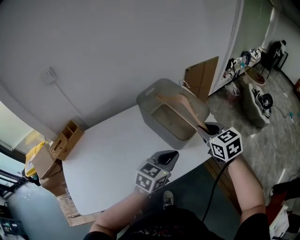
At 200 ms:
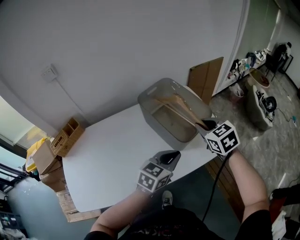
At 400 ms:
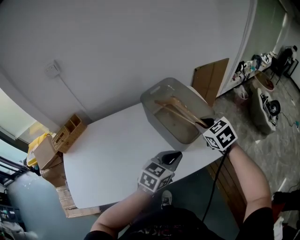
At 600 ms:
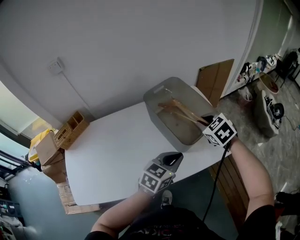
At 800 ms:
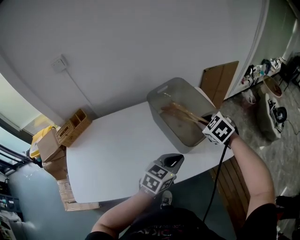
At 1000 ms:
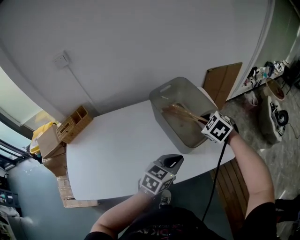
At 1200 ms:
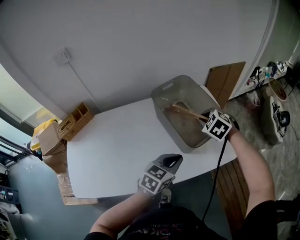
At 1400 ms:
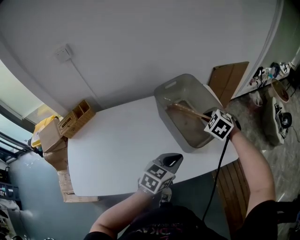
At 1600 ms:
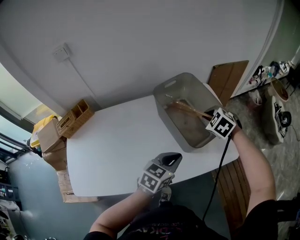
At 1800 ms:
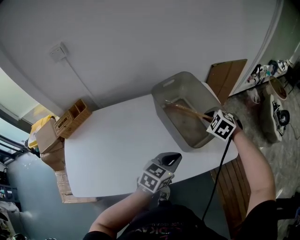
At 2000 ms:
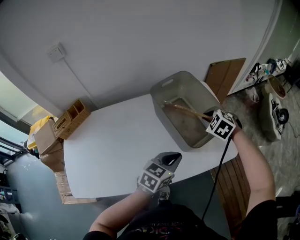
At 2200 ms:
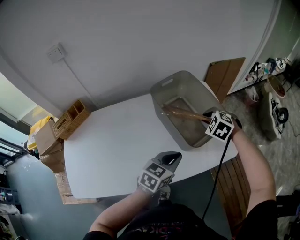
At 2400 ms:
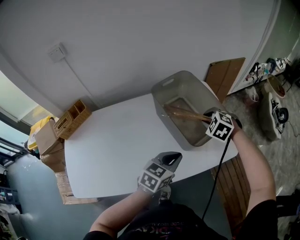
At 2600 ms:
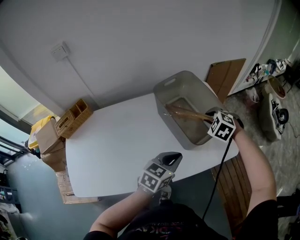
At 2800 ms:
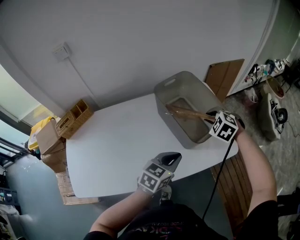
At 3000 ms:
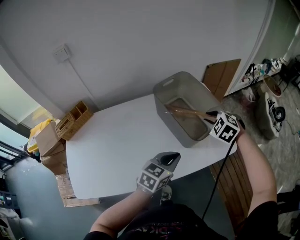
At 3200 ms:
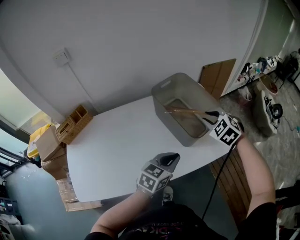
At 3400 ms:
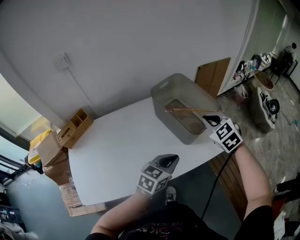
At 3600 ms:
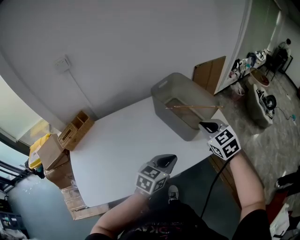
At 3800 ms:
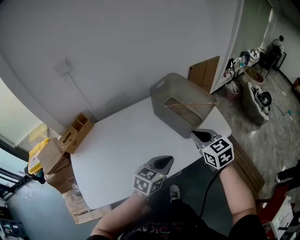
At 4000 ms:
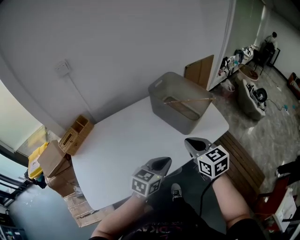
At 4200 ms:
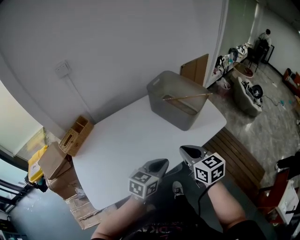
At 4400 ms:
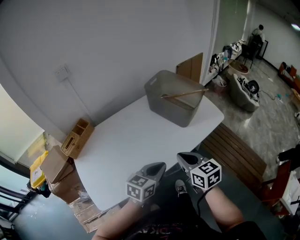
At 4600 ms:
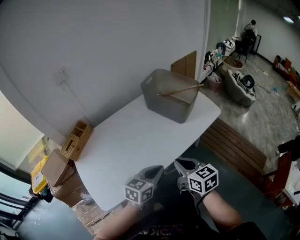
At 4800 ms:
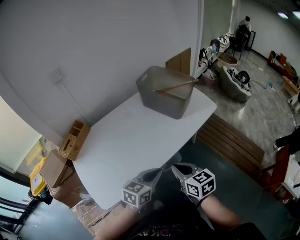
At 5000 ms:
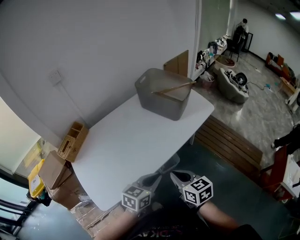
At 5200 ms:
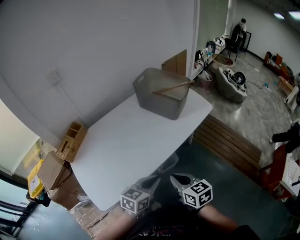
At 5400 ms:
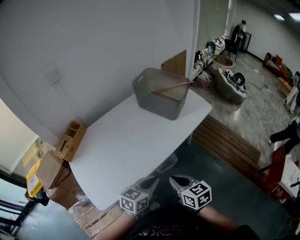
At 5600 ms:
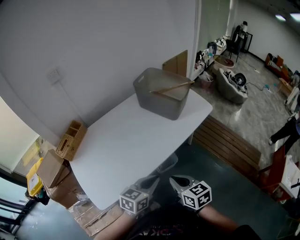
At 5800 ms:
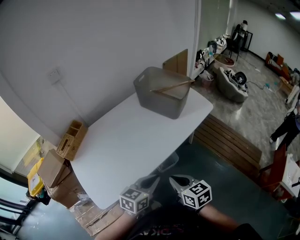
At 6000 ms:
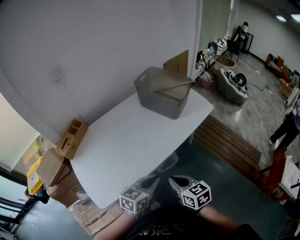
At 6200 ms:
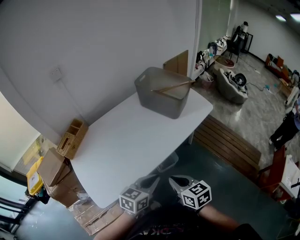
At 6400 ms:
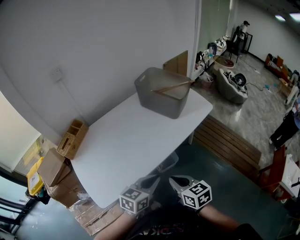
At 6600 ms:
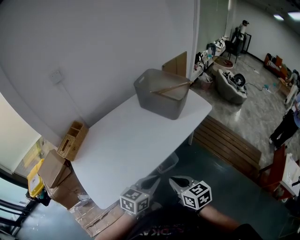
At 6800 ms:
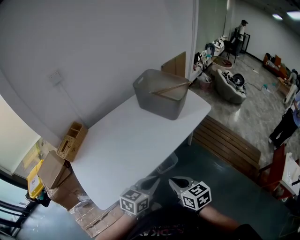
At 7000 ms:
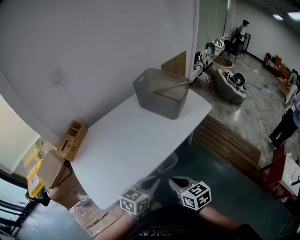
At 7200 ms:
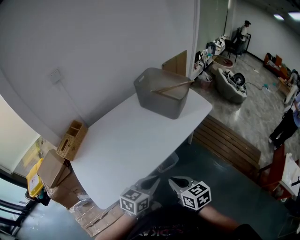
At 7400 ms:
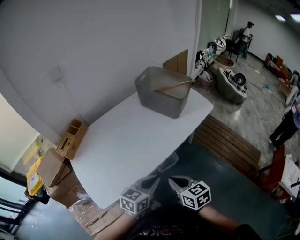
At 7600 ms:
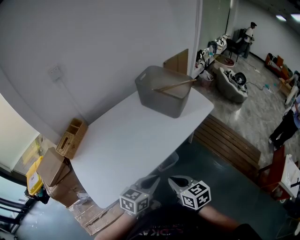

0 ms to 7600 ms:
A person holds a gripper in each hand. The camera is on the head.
0 ms to 1600 ms: The left gripper is displaced downward by about 5 cm, while the right gripper is displaced forward and downward by roughly 15 cm, and rotates roughly 40 degrees.
1600 ms to 3000 ms: The right gripper moves some 5 cm.
3000 ms to 4600 ms: The left gripper goes about 30 cm backward and to the left. The right gripper is displaced backward by about 40 cm, rotates around the line of its fingers by approximately 60 degrees, clockwise from behind, and closes its fingers.
4600 ms to 6000 ms: Both grippers move backward, some 10 cm.
6000 ms to 7600 ms: Both grippers stay put.

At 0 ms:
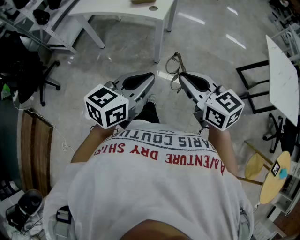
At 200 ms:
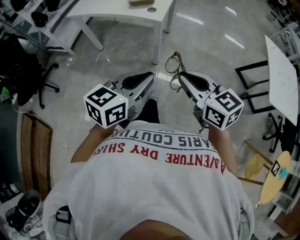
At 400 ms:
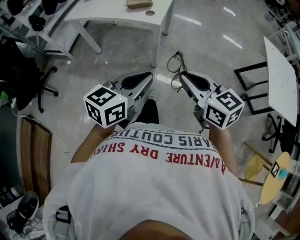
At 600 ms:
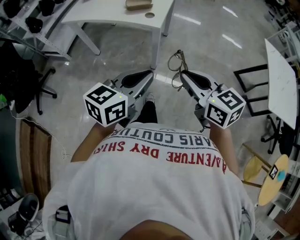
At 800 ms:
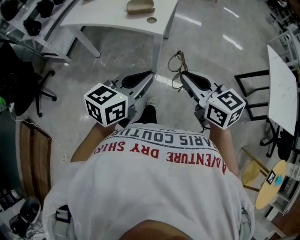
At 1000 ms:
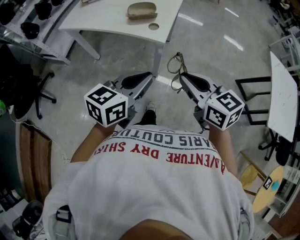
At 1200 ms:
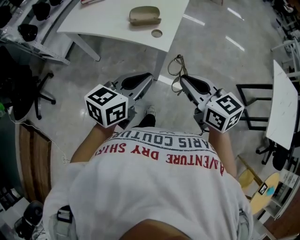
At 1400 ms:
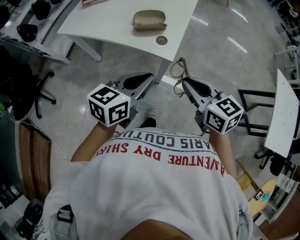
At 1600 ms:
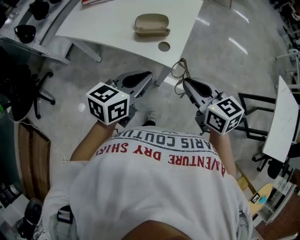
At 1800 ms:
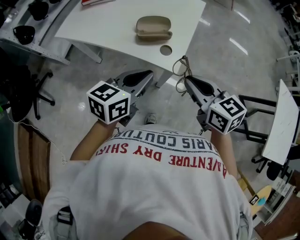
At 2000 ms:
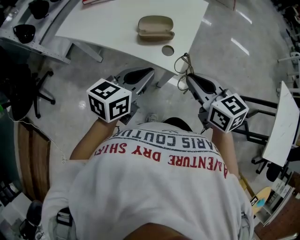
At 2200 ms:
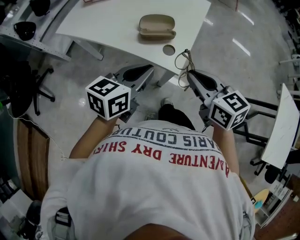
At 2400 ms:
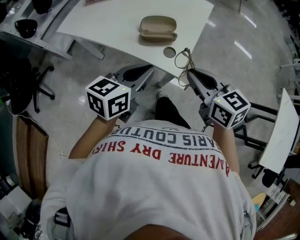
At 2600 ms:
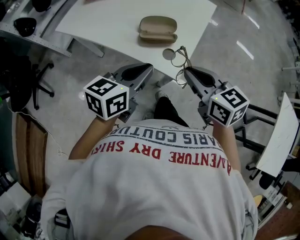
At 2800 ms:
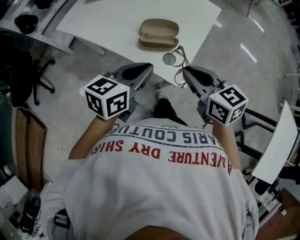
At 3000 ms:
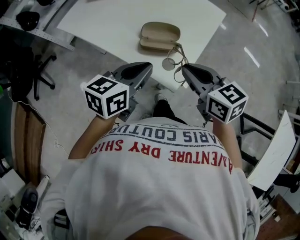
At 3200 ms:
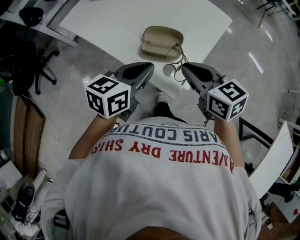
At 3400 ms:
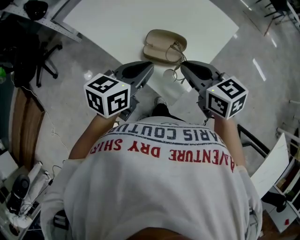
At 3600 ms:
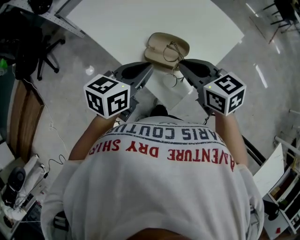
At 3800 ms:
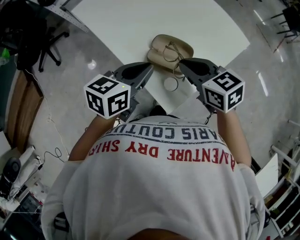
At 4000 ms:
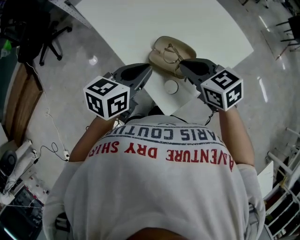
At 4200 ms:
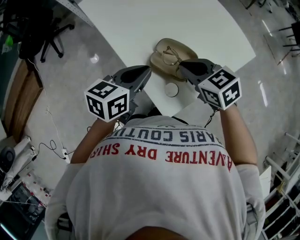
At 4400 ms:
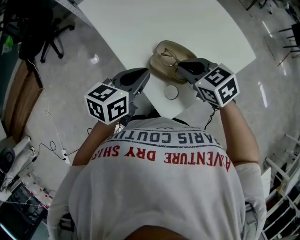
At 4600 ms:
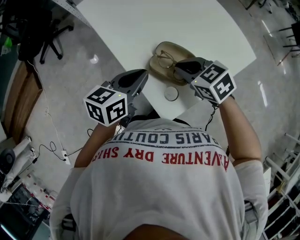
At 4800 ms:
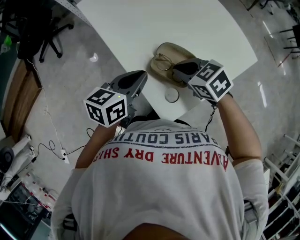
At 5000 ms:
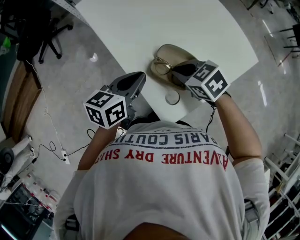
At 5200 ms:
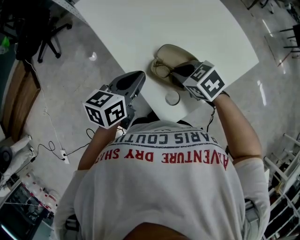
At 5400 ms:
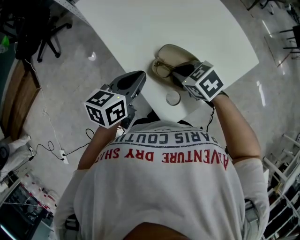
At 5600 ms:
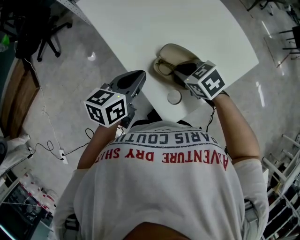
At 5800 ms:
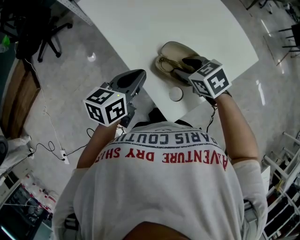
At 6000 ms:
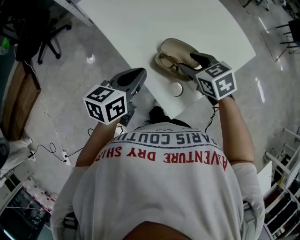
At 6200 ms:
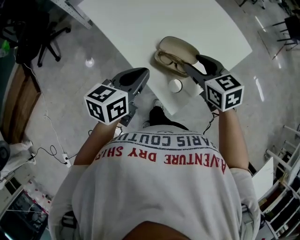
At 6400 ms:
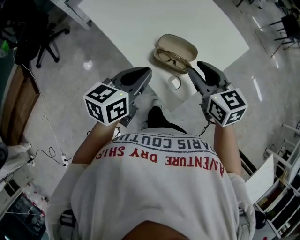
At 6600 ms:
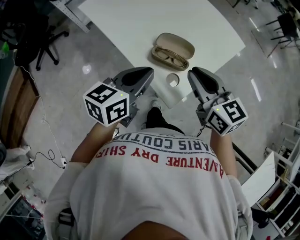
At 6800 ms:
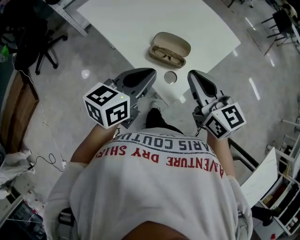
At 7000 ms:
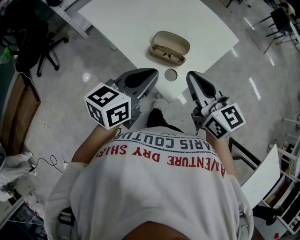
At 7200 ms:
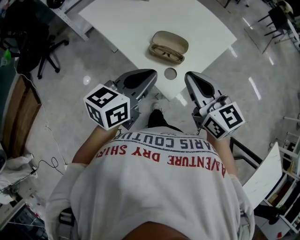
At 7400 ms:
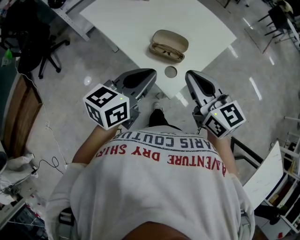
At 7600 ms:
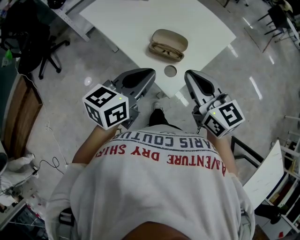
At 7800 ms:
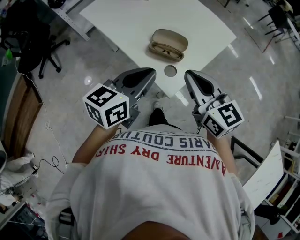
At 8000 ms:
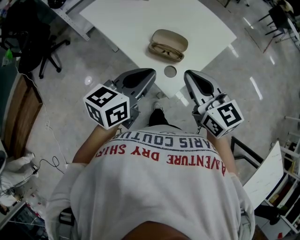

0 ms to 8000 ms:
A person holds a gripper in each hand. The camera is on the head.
0 ms to 1600 ms: Both grippers move forward, about 35 cm.
1600 ms to 3200 ms: The two grippers go roughly 20 cm forward.
3200 ms to 4800 ms: The left gripper ends up roughly 10 cm from where it was, and turns by about 20 degrees. Meanwhile the right gripper moves some 15 cm, and rotates some 40 degrees.
4800 ms to 6400 ms: The right gripper shifts approximately 10 cm upward and backward, changes its angle by about 40 degrees, and opens its fingers, while the left gripper shifts roughly 5 cm upward.
6400 ms to 8000 ms: Both grippers travel together backward and upward, roughly 10 cm. The right gripper closes.

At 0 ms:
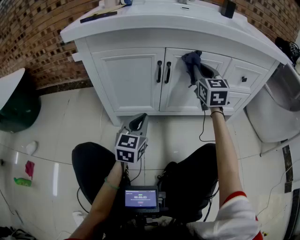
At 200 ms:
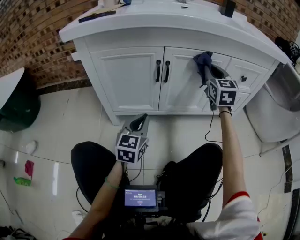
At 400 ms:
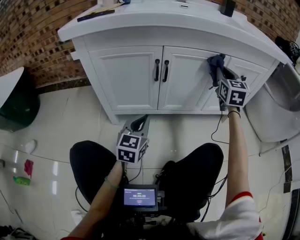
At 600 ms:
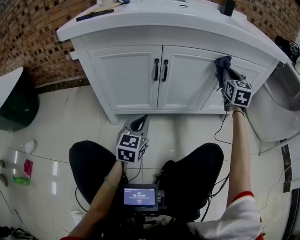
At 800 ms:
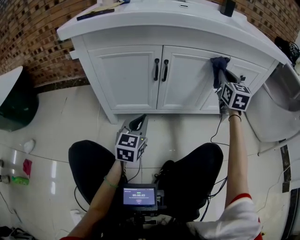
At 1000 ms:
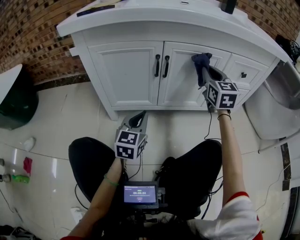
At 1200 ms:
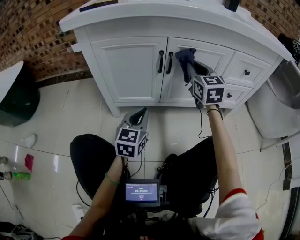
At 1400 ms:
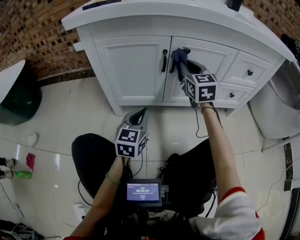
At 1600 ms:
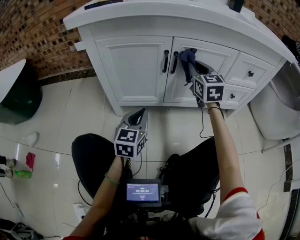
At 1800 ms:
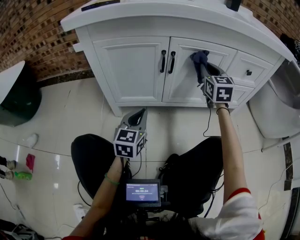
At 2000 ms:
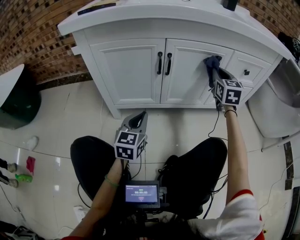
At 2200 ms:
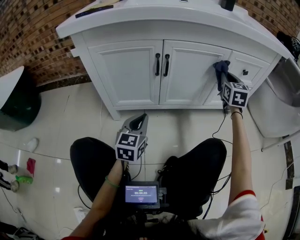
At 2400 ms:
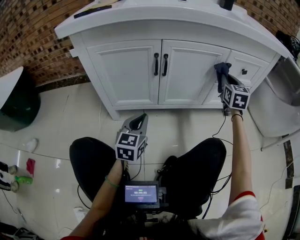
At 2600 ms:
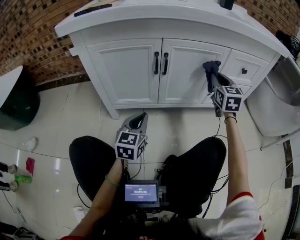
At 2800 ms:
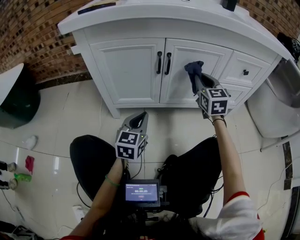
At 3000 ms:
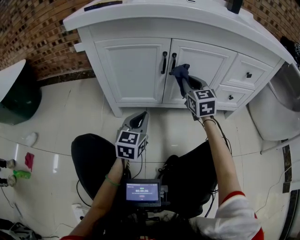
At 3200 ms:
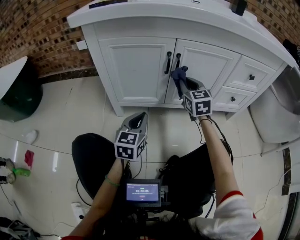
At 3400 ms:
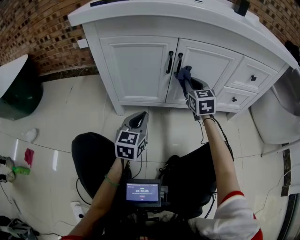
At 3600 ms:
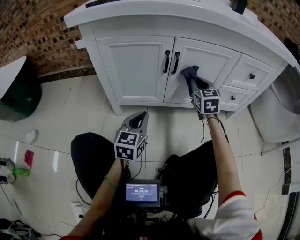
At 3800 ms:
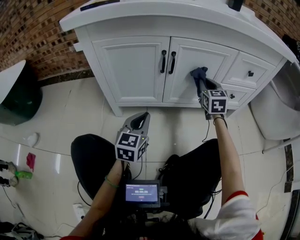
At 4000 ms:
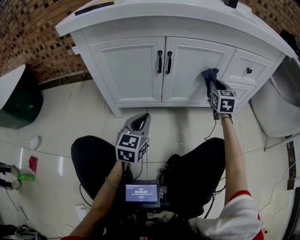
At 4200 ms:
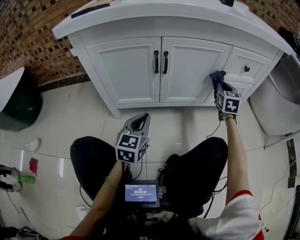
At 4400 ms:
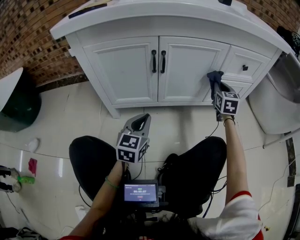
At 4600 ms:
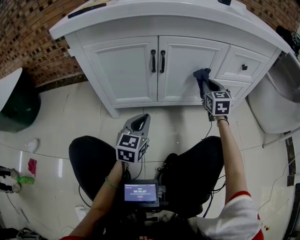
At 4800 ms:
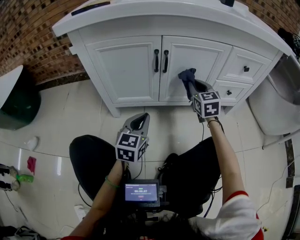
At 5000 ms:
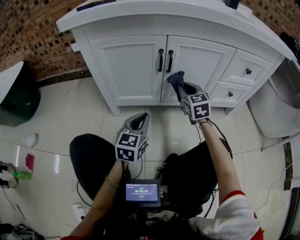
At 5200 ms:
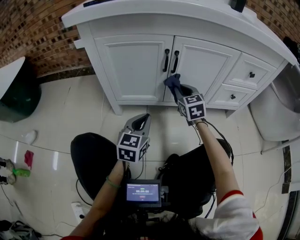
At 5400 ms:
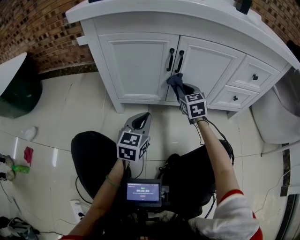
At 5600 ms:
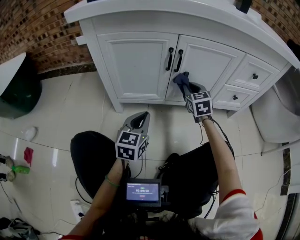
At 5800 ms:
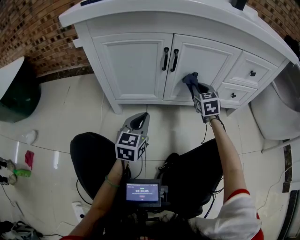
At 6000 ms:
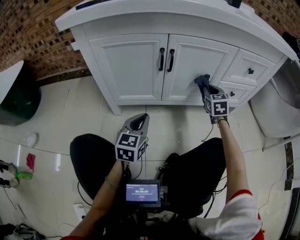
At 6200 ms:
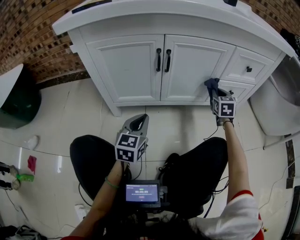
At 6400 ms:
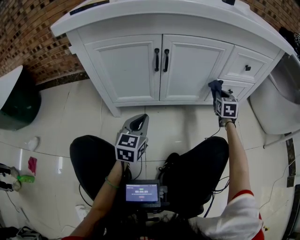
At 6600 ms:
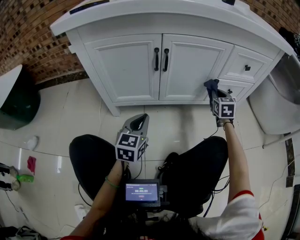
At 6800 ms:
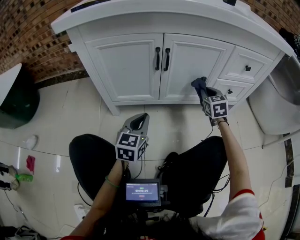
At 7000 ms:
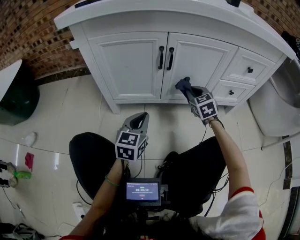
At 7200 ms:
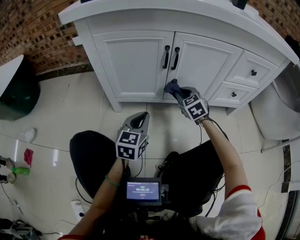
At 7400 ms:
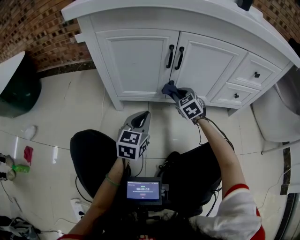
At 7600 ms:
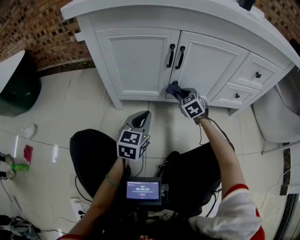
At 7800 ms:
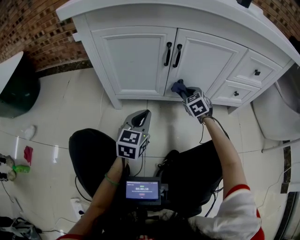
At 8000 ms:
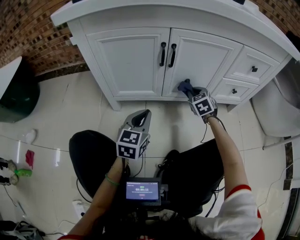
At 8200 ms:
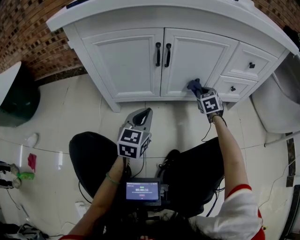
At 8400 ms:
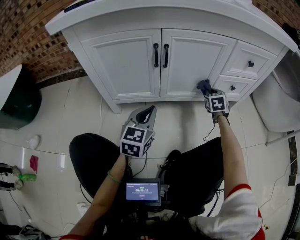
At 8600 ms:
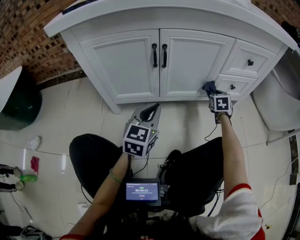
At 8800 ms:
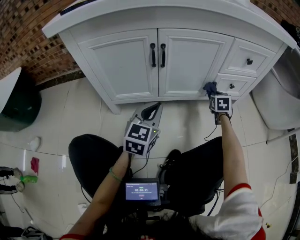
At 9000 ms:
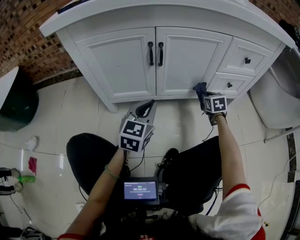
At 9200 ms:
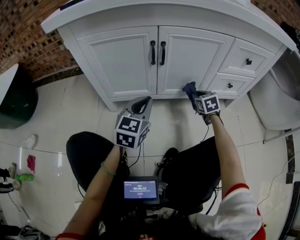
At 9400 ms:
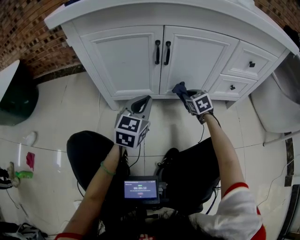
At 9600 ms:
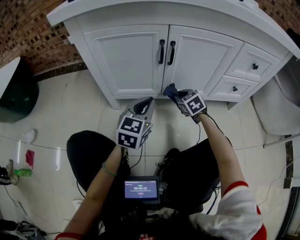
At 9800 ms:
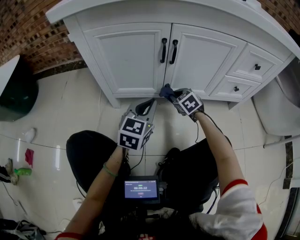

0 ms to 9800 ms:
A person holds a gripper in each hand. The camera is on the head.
0 ms to 1400 ms: The right gripper goes to the right and returns, some 15 cm each way.
1400 ms to 2800 ms: The right gripper heads to the right, covering about 10 cm.
2800 ms to 4200 ms: The right gripper is displaced to the right and downward by about 15 cm.
4200 ms to 5600 ms: The right gripper moves to the left, approximately 25 cm, and swivels approximately 20 degrees.
5600 ms to 7000 ms: The right gripper goes to the right and returns, approximately 25 cm each way.
7000 ms to 8400 ms: The left gripper changes place by about 5 cm; the right gripper heads to the right and downward, covering about 15 cm, and rotates roughly 20 degrees.
8400 ms to 9800 ms: The right gripper moves to the left, approximately 25 cm, and changes its angle by about 40 degrees.
